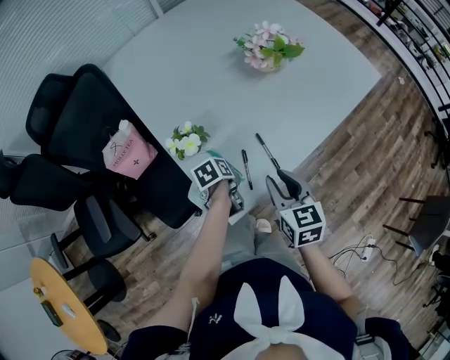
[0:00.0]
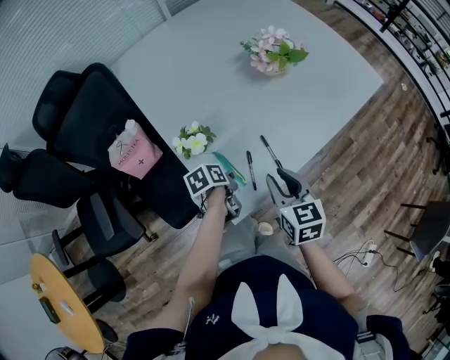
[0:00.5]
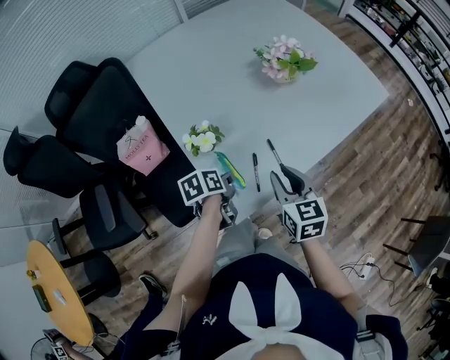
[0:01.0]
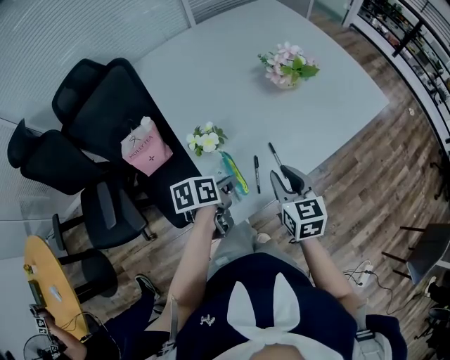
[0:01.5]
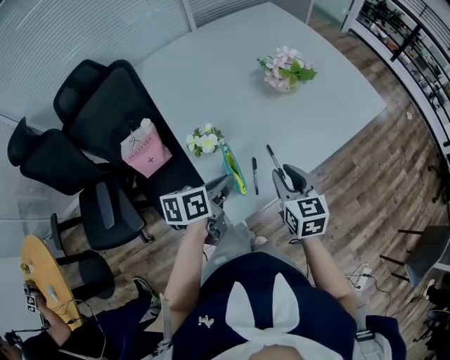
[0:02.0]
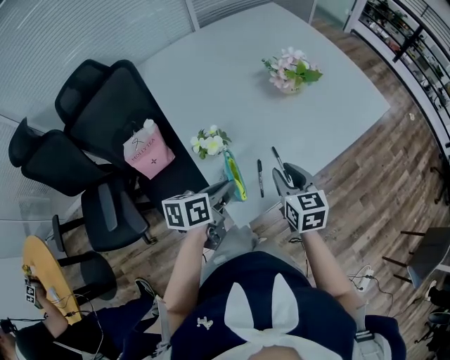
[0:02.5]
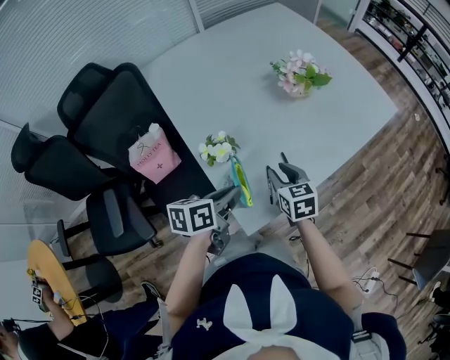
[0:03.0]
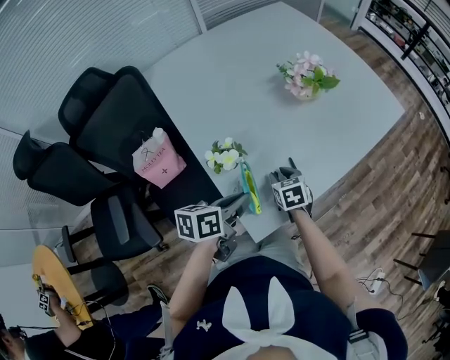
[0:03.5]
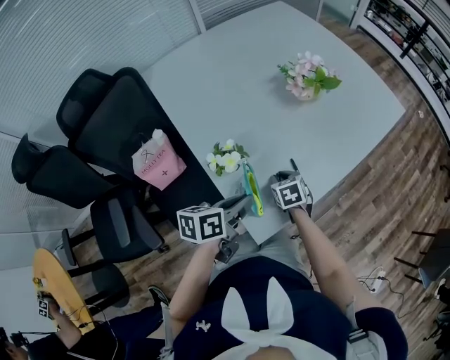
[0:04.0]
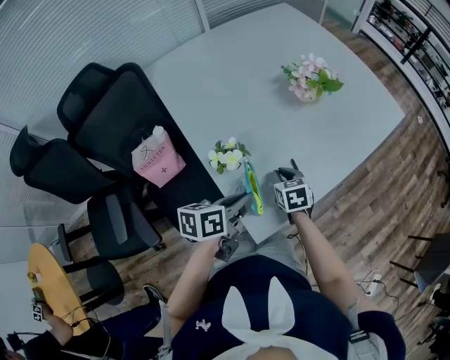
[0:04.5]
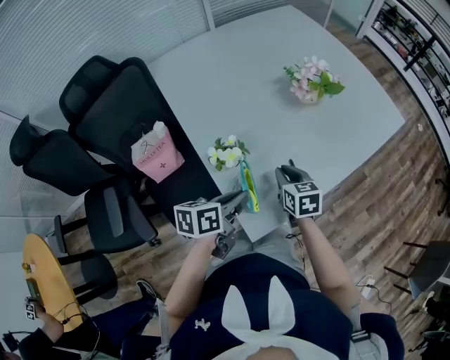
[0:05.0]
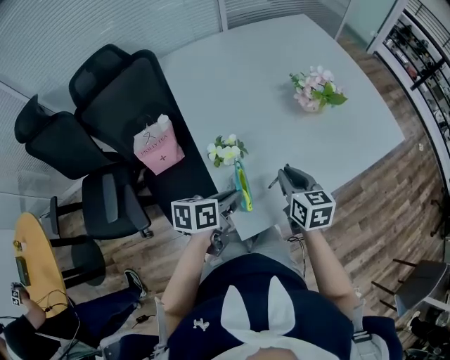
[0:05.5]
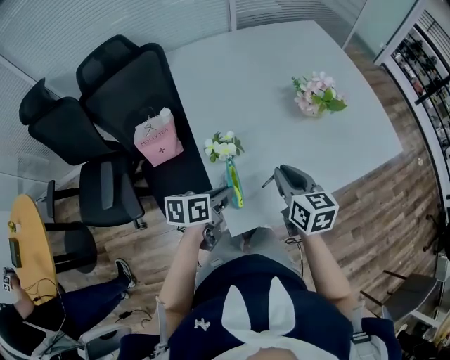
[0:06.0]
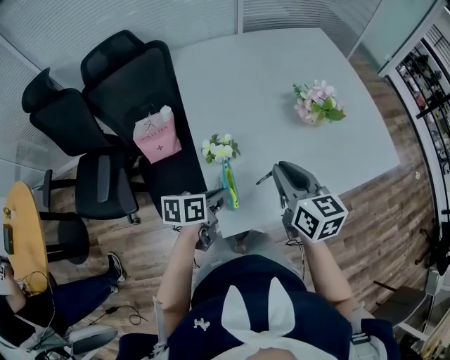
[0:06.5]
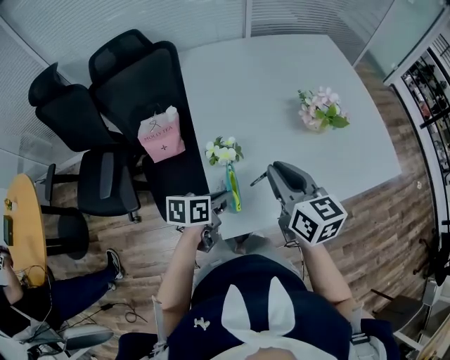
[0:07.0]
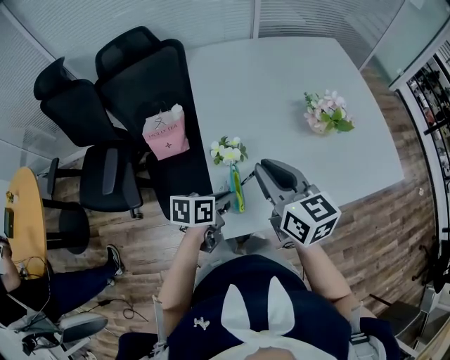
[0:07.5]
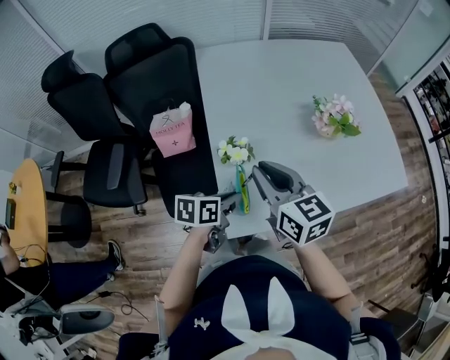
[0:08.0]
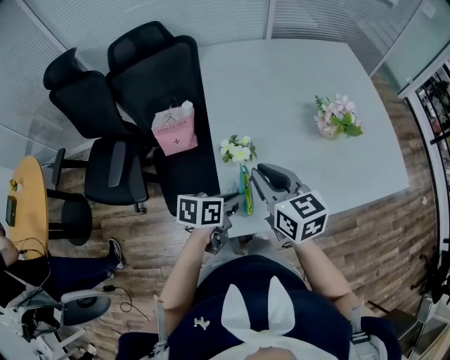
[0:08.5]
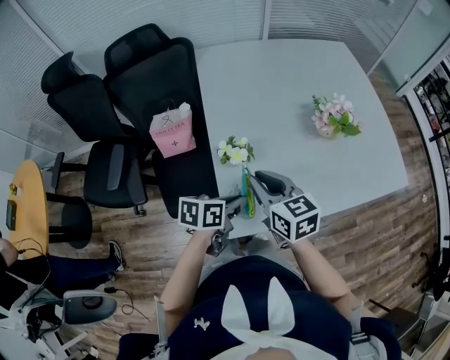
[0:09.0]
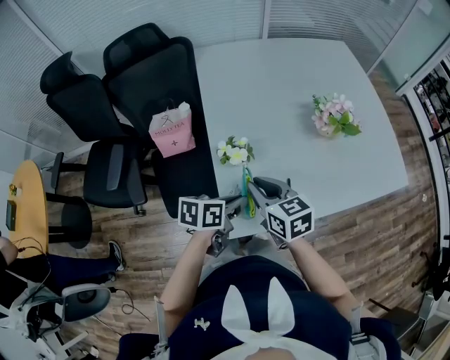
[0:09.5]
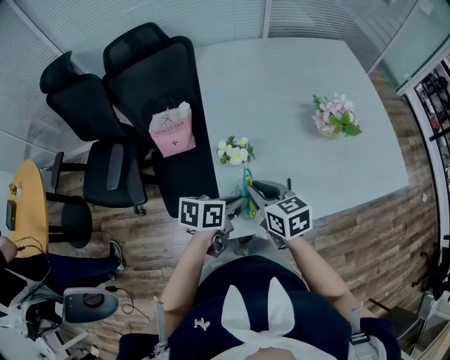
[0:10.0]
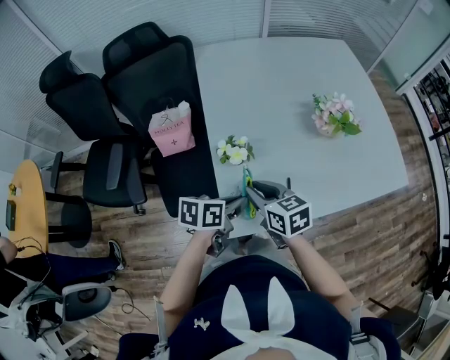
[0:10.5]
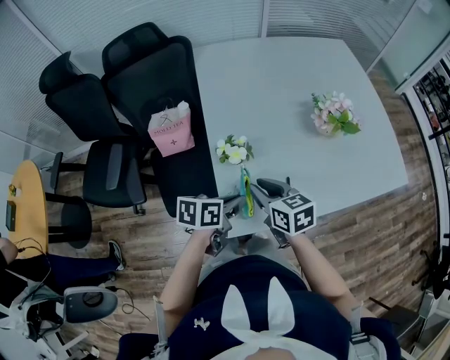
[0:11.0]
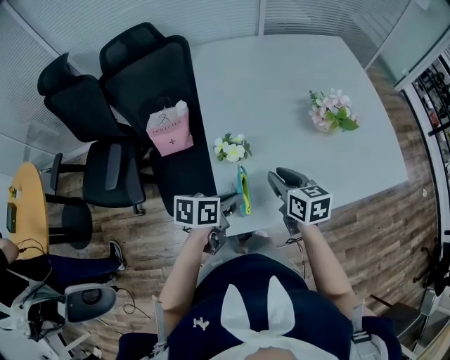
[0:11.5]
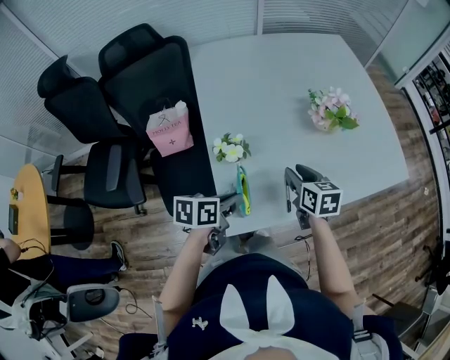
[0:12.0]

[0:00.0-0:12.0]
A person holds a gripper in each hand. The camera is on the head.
0:00.0 to 0:02.0: The left gripper travels upward by roughly 20 cm, and angles its fingers upward, by some 40 degrees.
0:02.0 to 0:04.0: The right gripper heads downward, covering approximately 20 cm, and rotates approximately 30 degrees.
0:04.0 to 0:06.0: The right gripper travels upward by some 20 cm, and angles its fingers upward, by some 30 degrees.
0:06.0 to 0:08.0: The right gripper moves upward and to the left, some 15 cm, and changes its angle by roughly 20 degrees.
0:08.0 to 0:10.0: The right gripper goes about 10 cm downward.
0:10.0 to 0:12.0: The right gripper moves to the right and forward, approximately 15 cm, and opens up.

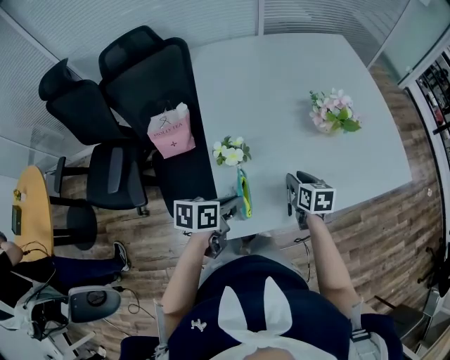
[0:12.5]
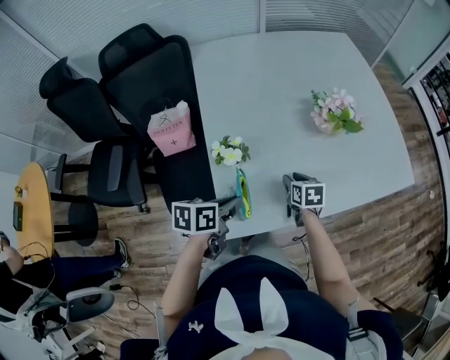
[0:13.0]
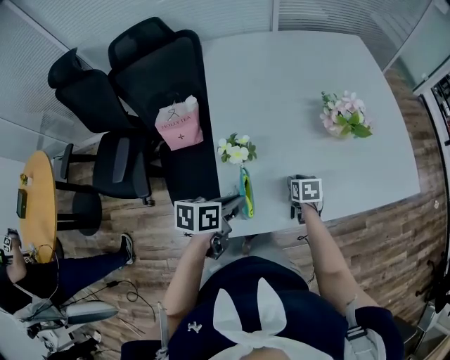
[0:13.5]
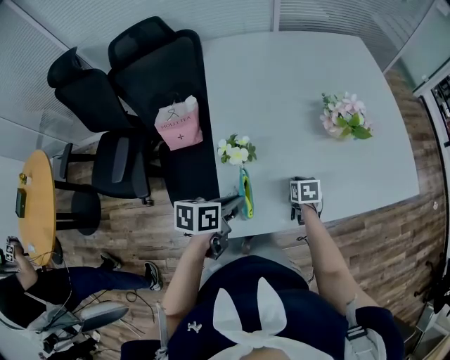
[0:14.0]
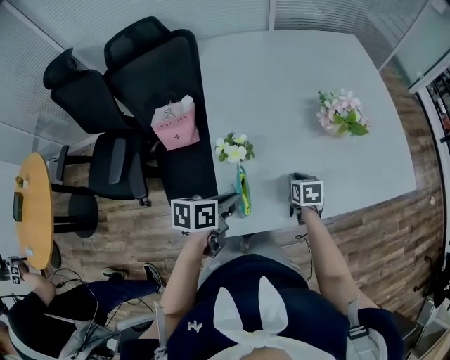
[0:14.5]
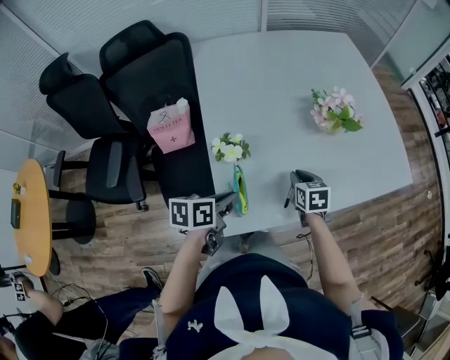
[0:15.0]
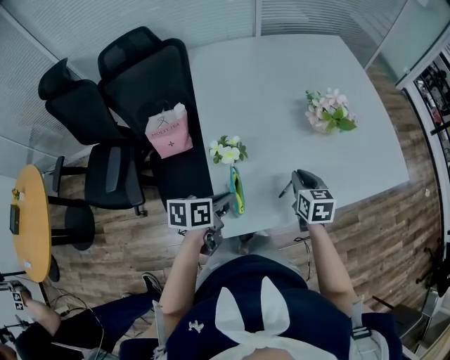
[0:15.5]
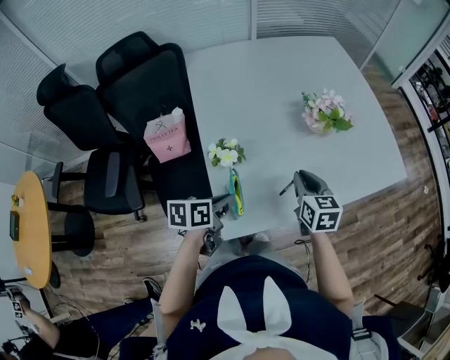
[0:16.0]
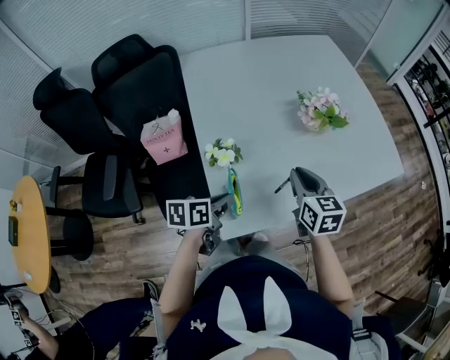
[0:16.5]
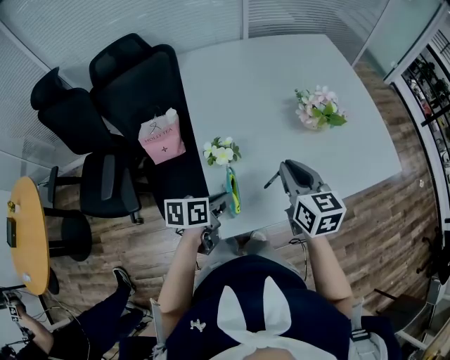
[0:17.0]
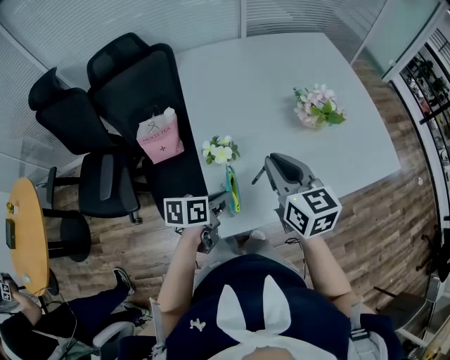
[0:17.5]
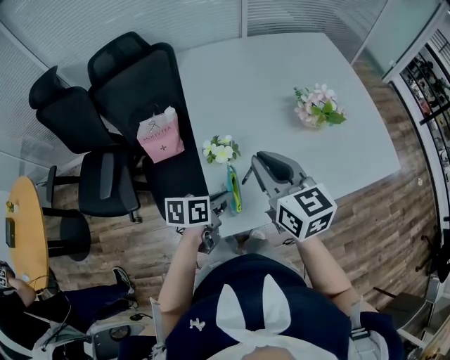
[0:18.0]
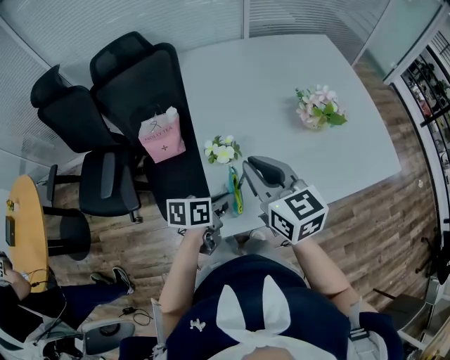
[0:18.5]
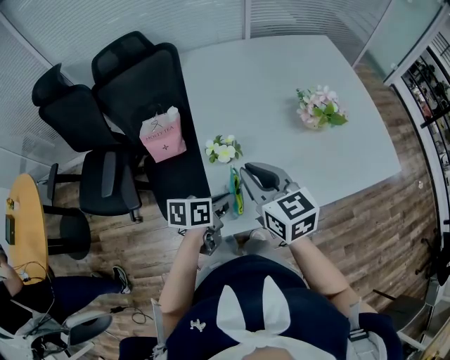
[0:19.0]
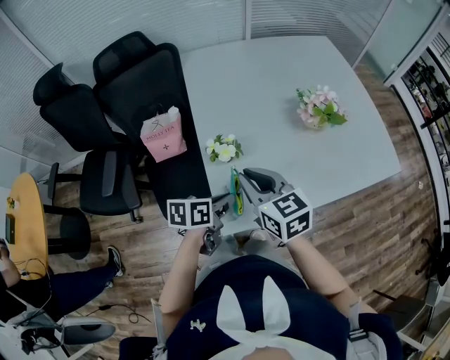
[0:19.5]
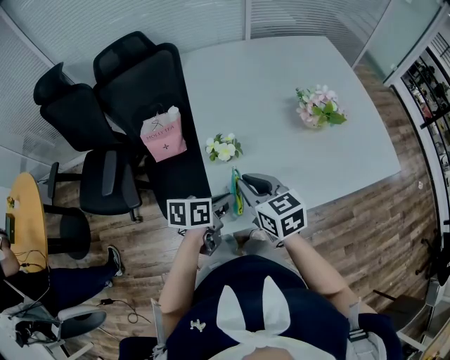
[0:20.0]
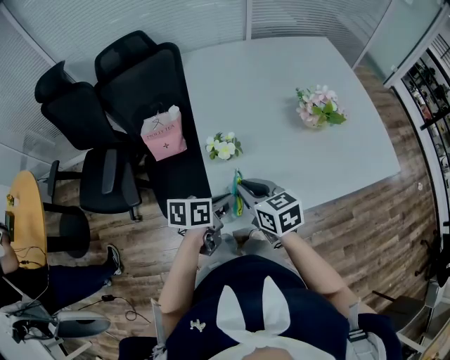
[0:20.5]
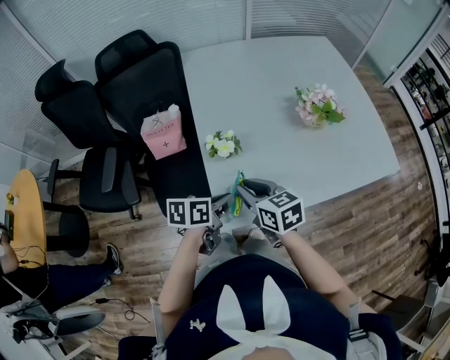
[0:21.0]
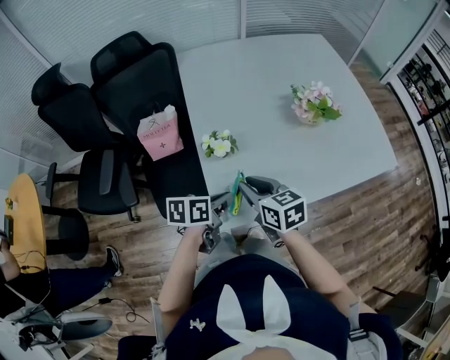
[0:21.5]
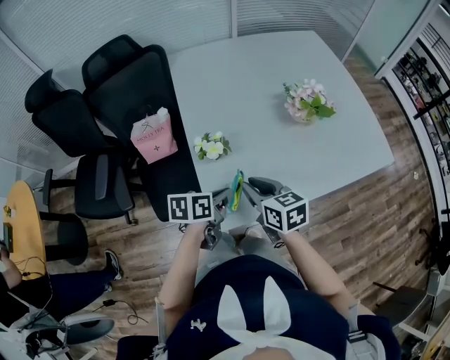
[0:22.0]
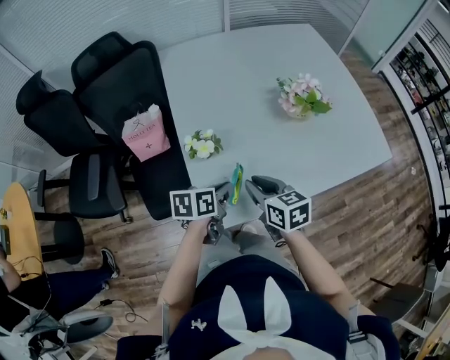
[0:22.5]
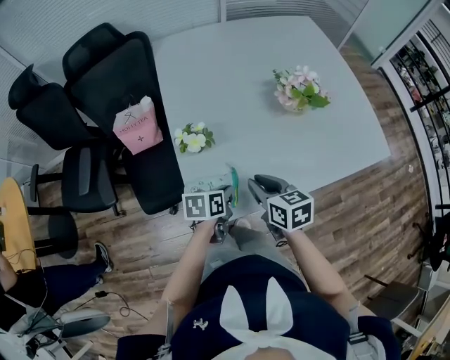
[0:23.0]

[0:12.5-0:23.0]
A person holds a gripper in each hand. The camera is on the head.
0:12.5 to 0:14.5: The right gripper heads downward, covering some 5 cm, and closes its fingers.
0:14.5 to 0:16.5: The right gripper is displaced upward by roughly 20 cm, and rotates roughly 30 degrees.
0:16.5 to 0:19.0: The right gripper shifts about 15 cm to the left and upward, and rotates about 20 degrees.
0:19.0 to 0:21.0: The right gripper travels downward by roughly 10 cm.
0:21.0 to 0:23.0: The right gripper shifts roughly 10 cm to the right, while the left gripper moves downward and to the right, roughly 10 cm.

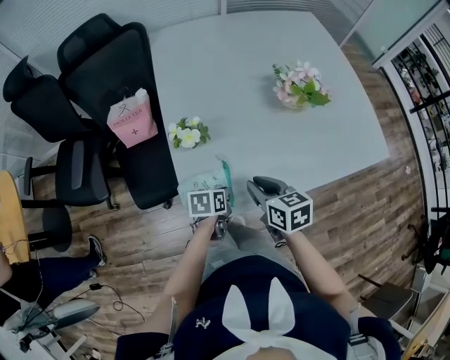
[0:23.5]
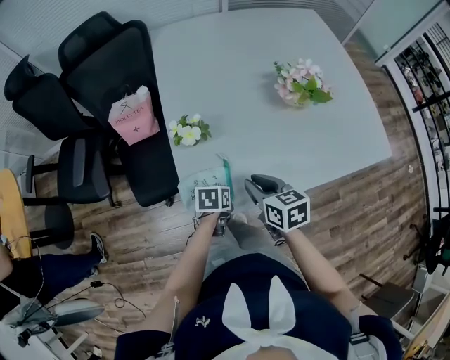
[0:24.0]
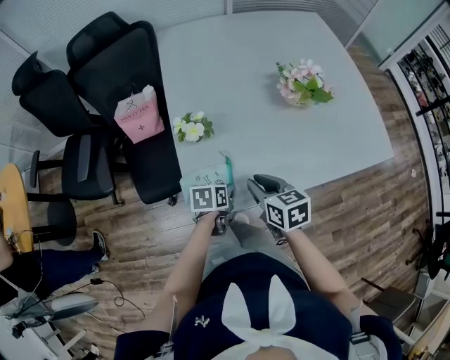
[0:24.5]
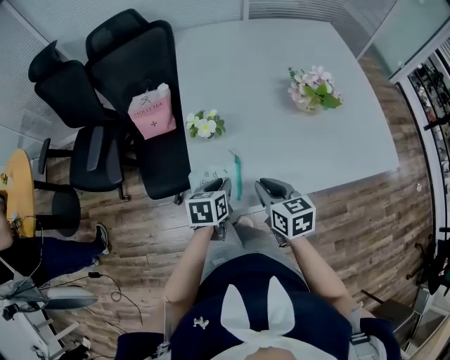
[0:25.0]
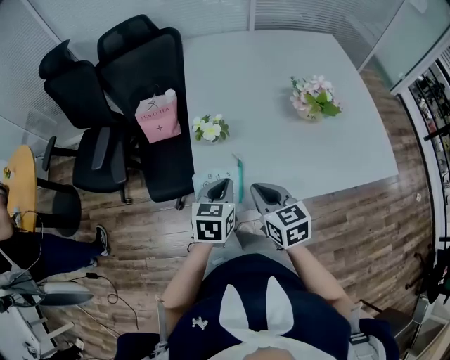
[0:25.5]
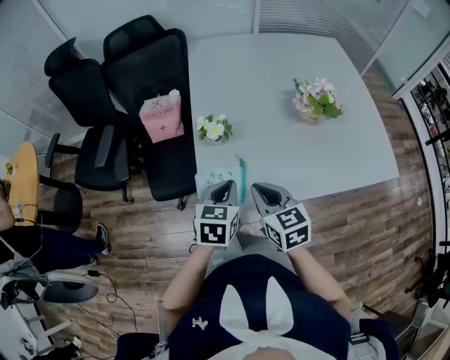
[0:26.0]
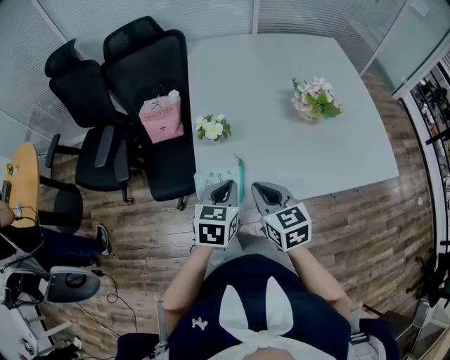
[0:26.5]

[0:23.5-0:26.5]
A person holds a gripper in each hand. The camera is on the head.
0:23.5 to 0:25.0: The left gripper shifts about 10 cm upward.
0:25.0 to 0:26.5: The right gripper is displaced upward by approximately 5 cm. Meanwhile the left gripper heads upward, covering roughly 10 cm.

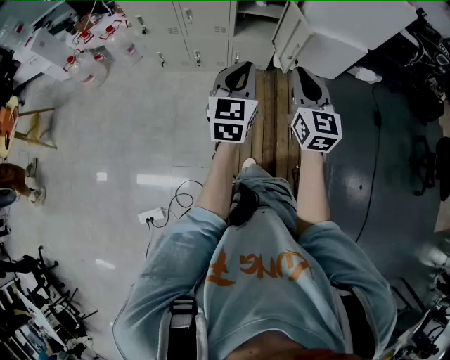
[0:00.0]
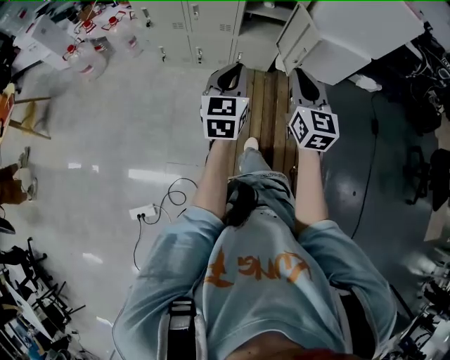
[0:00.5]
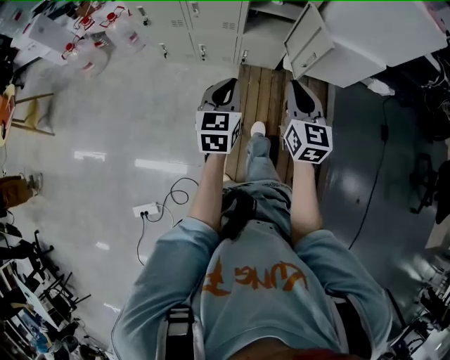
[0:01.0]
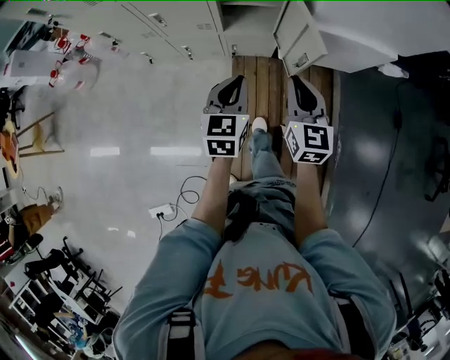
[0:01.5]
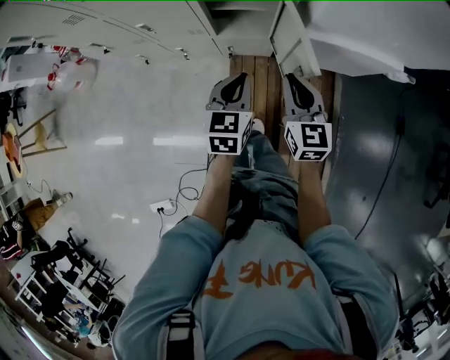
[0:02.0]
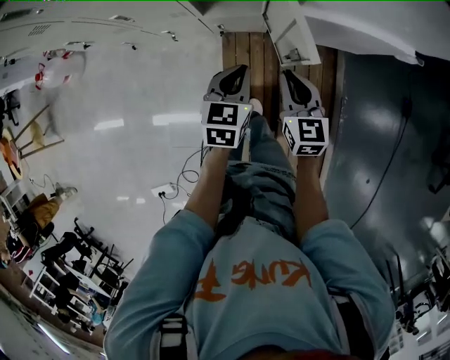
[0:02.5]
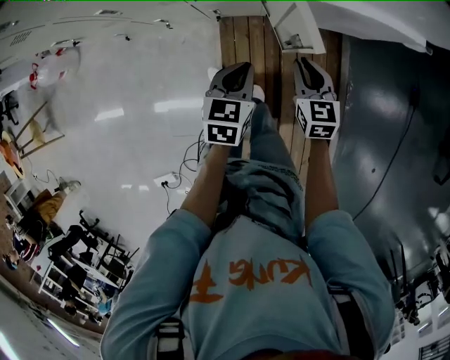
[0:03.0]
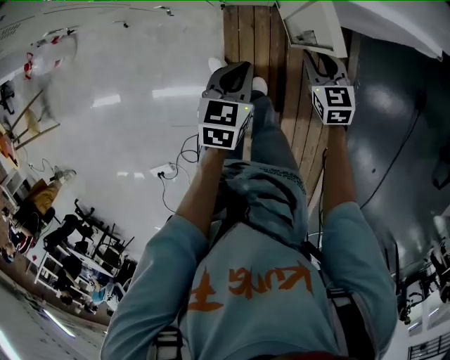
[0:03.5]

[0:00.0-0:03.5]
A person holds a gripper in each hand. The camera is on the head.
0:00.0 to 0:02.0: The grippers both shift forward and downward by about 35 cm. The left gripper swivels approximately 20 degrees.
0:02.0 to 0:03.5: The left gripper moves downward, about 15 cm. The right gripper is displaced downward by about 20 cm, and swivels about 20 degrees.
